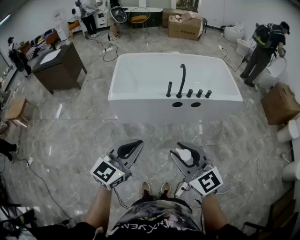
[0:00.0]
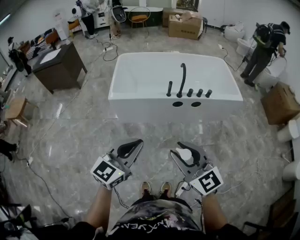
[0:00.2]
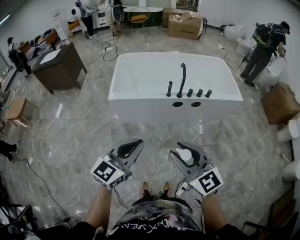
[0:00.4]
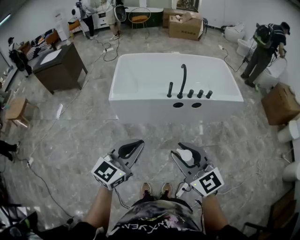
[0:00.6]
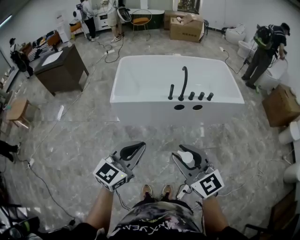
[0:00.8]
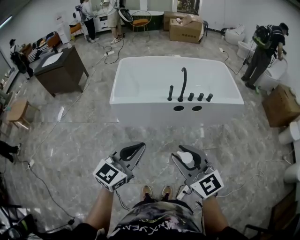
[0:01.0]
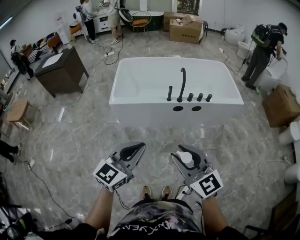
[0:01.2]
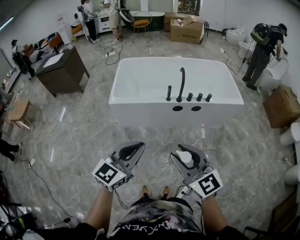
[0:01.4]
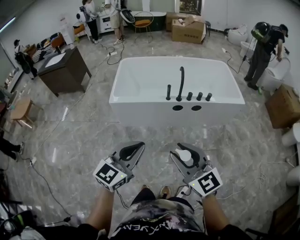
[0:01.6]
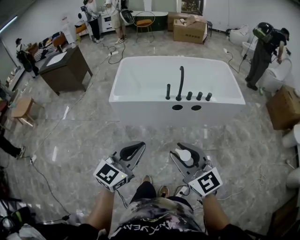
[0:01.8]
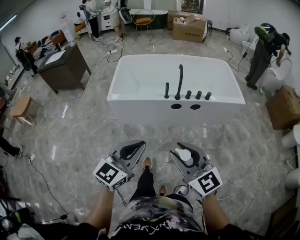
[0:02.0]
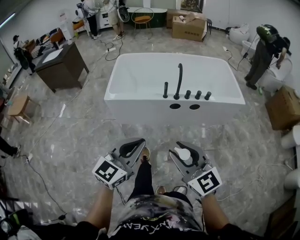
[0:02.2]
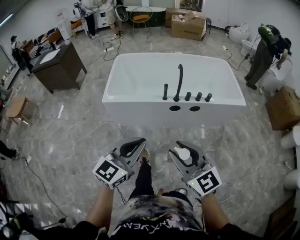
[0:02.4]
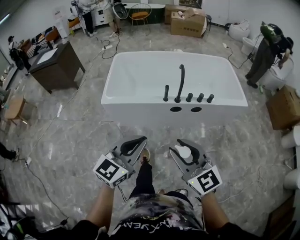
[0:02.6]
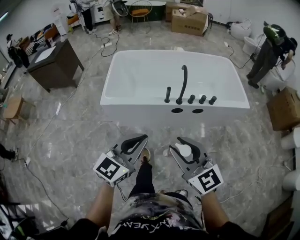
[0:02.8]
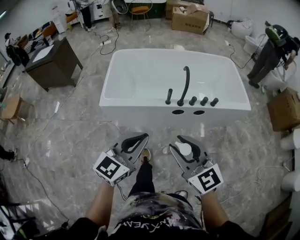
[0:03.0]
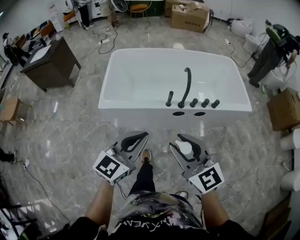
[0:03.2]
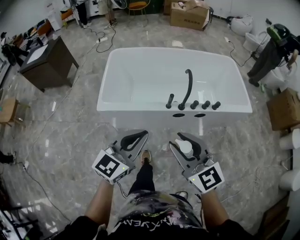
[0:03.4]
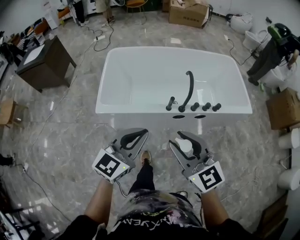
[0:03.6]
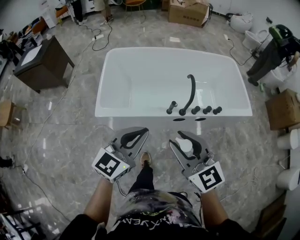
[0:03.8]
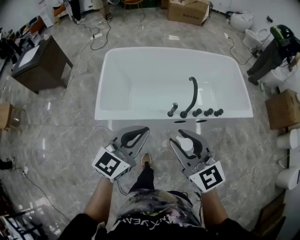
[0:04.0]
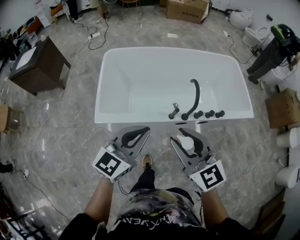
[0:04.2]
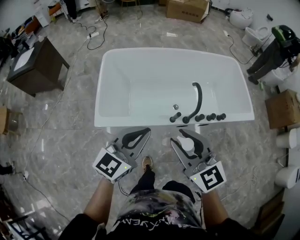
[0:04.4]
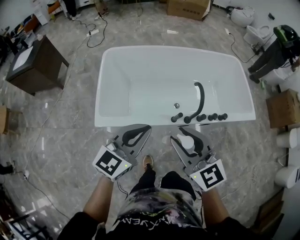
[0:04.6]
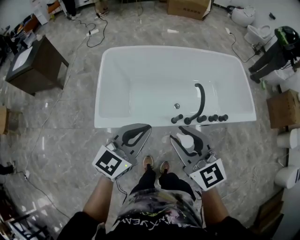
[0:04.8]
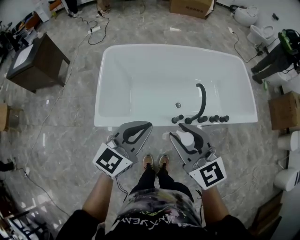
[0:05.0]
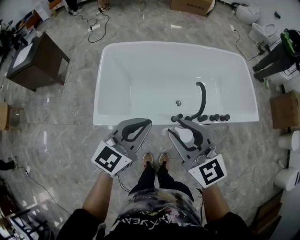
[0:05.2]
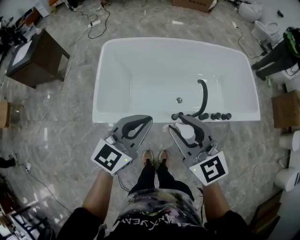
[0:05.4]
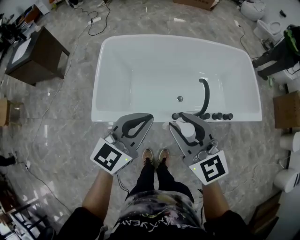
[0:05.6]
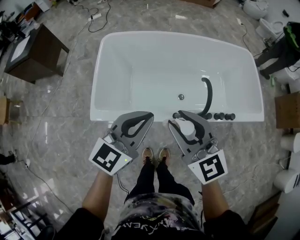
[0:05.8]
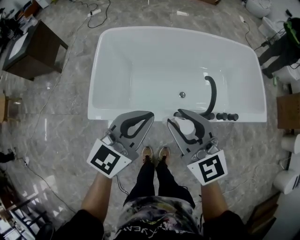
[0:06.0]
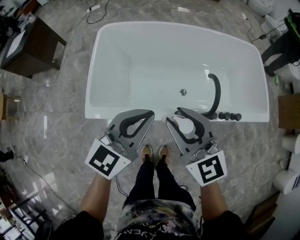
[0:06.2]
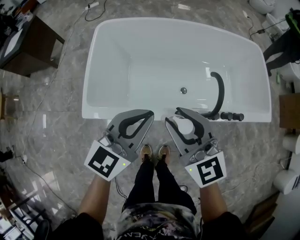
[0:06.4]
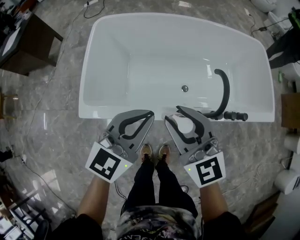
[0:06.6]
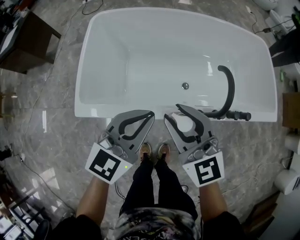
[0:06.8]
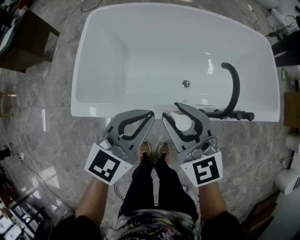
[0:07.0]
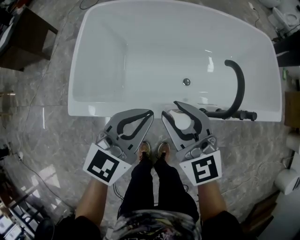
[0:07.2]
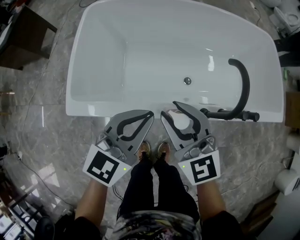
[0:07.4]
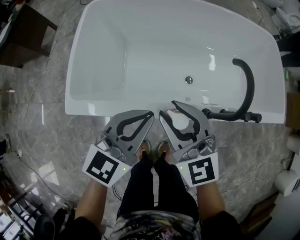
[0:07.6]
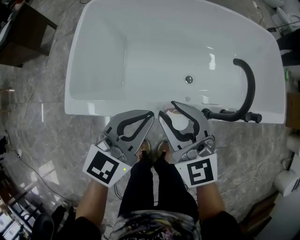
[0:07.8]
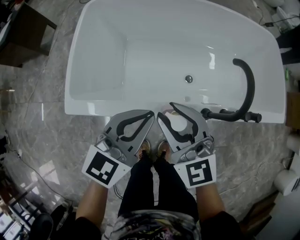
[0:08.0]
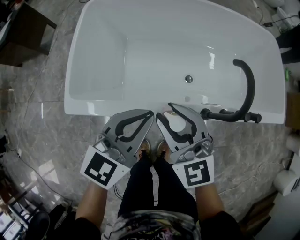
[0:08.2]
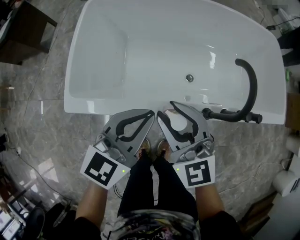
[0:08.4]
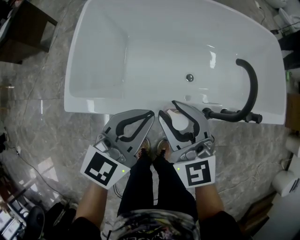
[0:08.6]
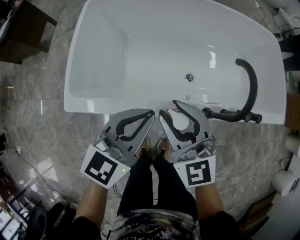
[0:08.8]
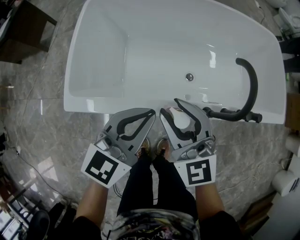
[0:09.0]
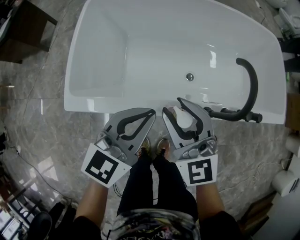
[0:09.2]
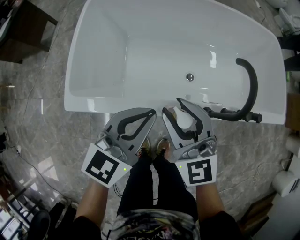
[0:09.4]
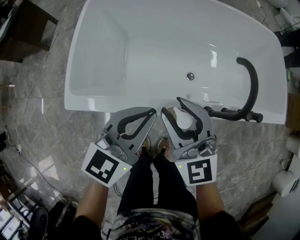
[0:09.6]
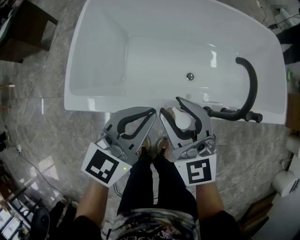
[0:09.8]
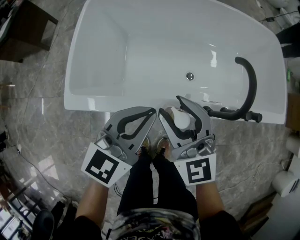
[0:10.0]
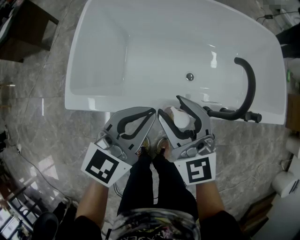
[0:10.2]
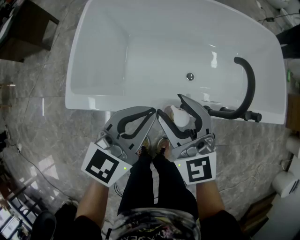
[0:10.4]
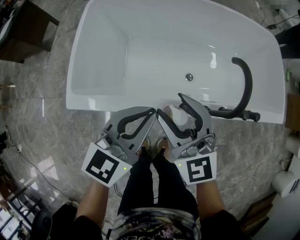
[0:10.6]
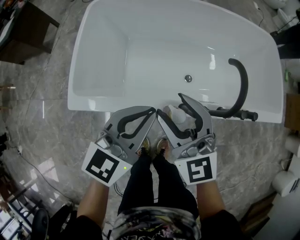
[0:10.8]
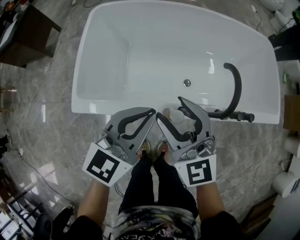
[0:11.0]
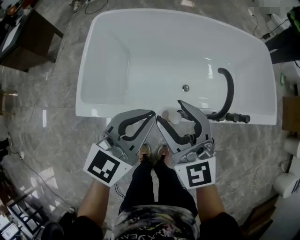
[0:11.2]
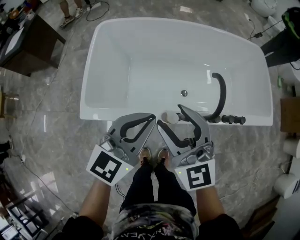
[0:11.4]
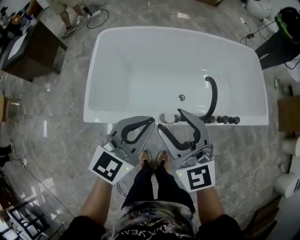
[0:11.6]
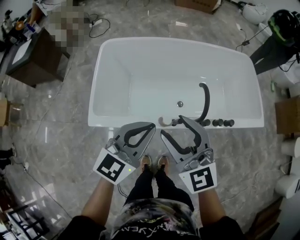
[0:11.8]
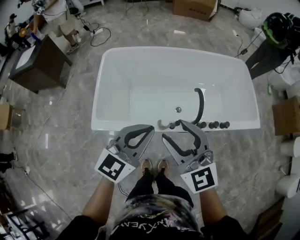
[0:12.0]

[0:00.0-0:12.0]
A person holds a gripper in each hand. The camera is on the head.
0:00.0 to 0:01.6: Both grippers move to the right, approximately 5 cm.
0:01.6 to 0:03.0: Both grippers move forward, some 20 cm.
0:03.0 to 0:04.4: Both grippers travel together forward, roughly 30 cm.
0:04.4 to 0:06.0: The grippers both shift forward and downward by approximately 15 cm.
0:06.0 to 0:07.6: The grippers both shift downward by approximately 25 cm.
0:07.6 to 0:09.0: Both grippers stay about where they are.
0:09.0 to 0:10.4: The two grippers keep their place.
0:10.4 to 0:12.0: The grippers both shift upward by approximately 25 cm.

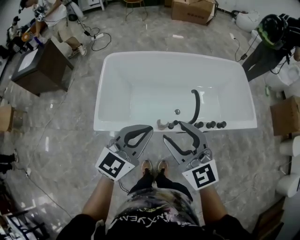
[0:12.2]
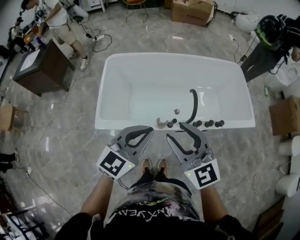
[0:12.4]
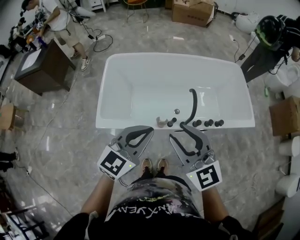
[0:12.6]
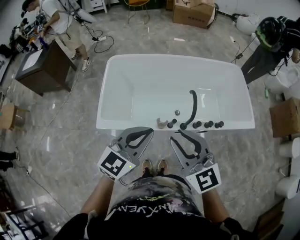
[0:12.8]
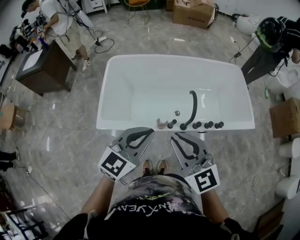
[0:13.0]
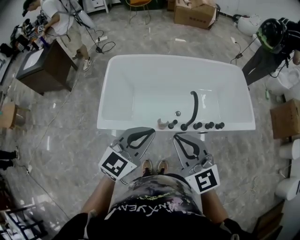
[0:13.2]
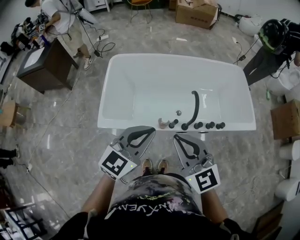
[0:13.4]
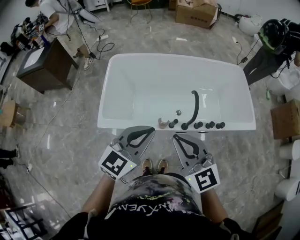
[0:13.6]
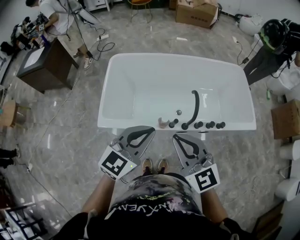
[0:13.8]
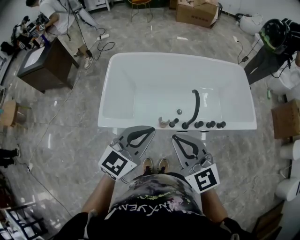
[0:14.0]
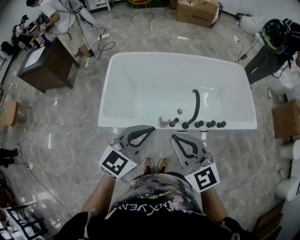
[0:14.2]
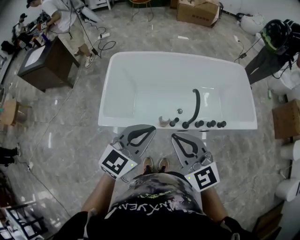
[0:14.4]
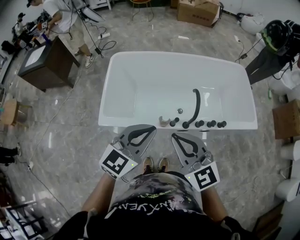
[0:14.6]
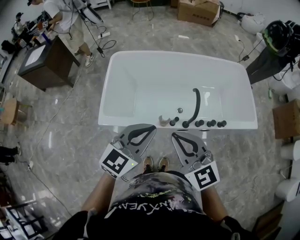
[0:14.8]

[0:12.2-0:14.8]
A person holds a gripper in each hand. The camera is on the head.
0:12.2 to 0:13.4: The right gripper closes.
0:13.4 to 0:14.8: Both grippers stay put.

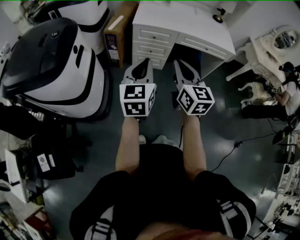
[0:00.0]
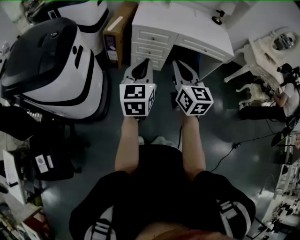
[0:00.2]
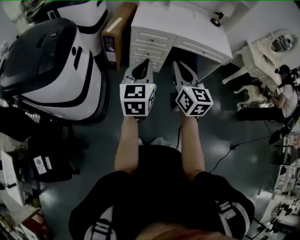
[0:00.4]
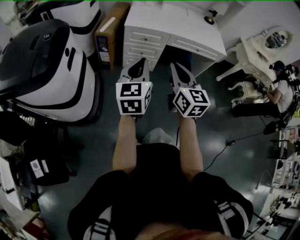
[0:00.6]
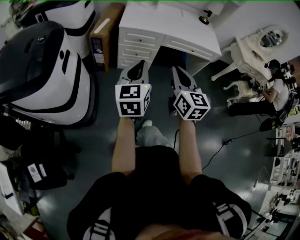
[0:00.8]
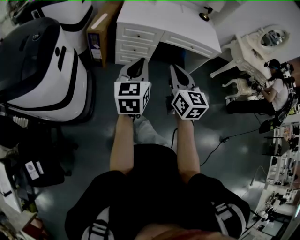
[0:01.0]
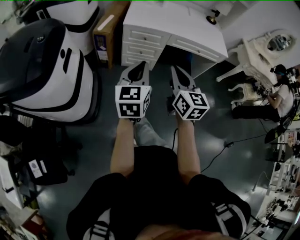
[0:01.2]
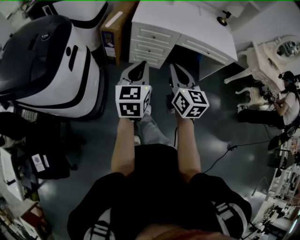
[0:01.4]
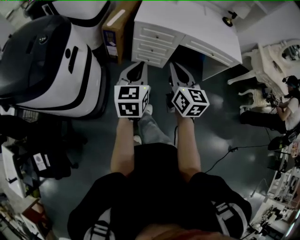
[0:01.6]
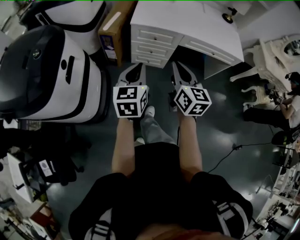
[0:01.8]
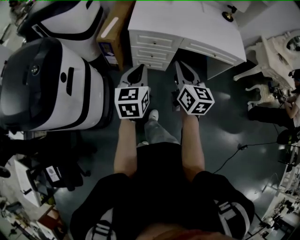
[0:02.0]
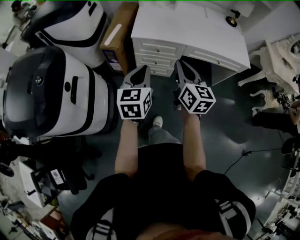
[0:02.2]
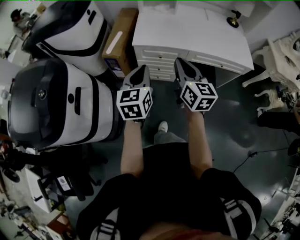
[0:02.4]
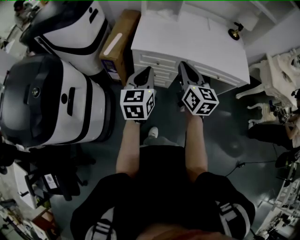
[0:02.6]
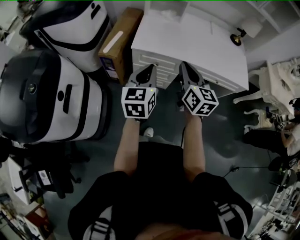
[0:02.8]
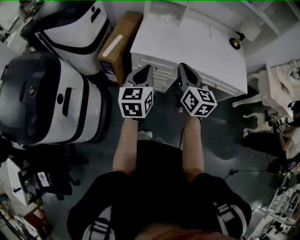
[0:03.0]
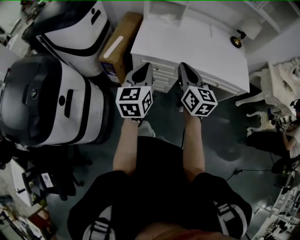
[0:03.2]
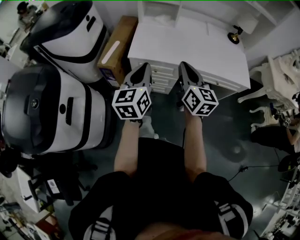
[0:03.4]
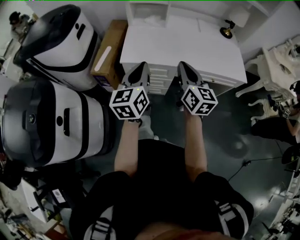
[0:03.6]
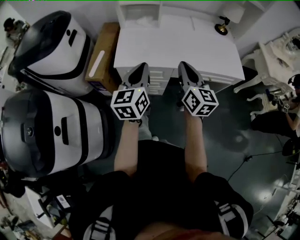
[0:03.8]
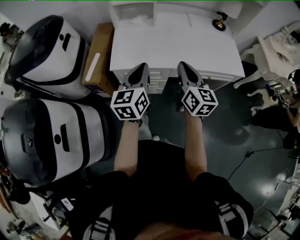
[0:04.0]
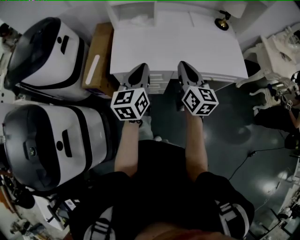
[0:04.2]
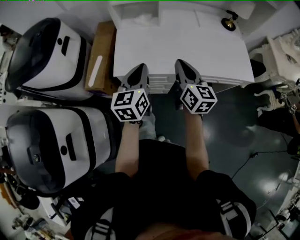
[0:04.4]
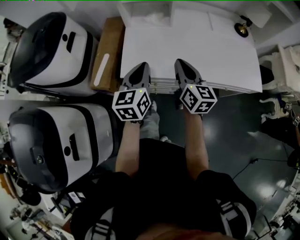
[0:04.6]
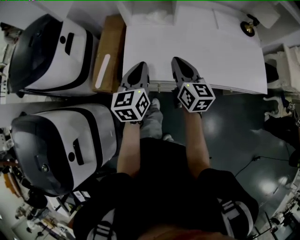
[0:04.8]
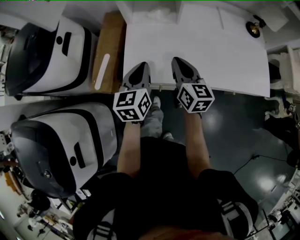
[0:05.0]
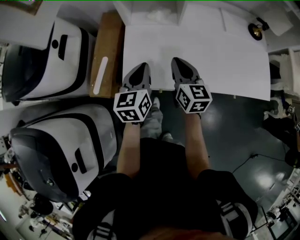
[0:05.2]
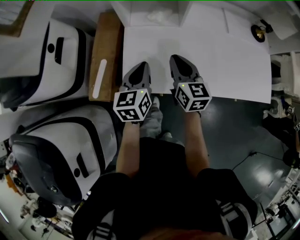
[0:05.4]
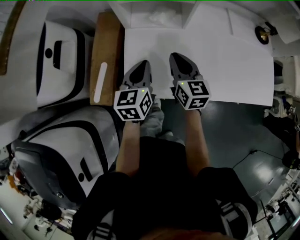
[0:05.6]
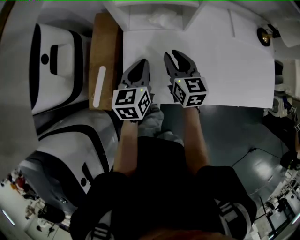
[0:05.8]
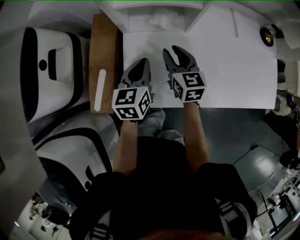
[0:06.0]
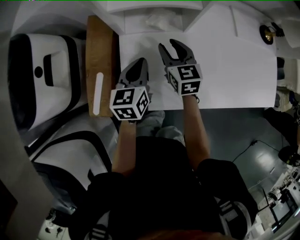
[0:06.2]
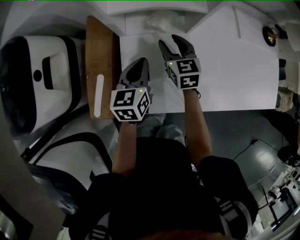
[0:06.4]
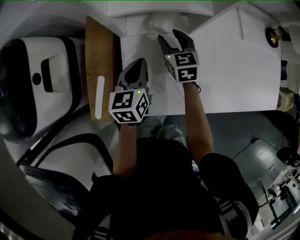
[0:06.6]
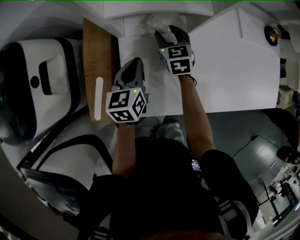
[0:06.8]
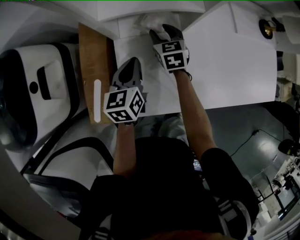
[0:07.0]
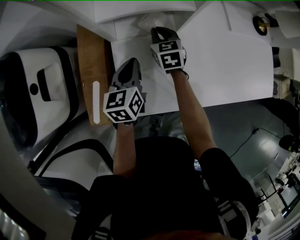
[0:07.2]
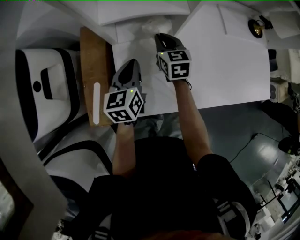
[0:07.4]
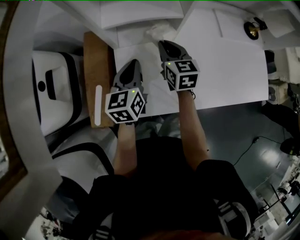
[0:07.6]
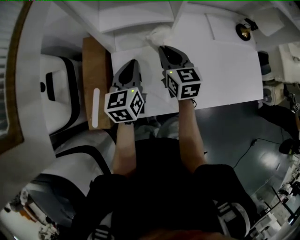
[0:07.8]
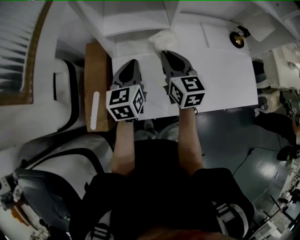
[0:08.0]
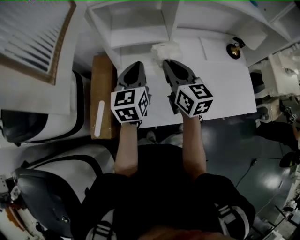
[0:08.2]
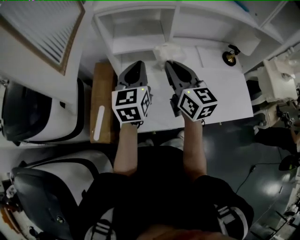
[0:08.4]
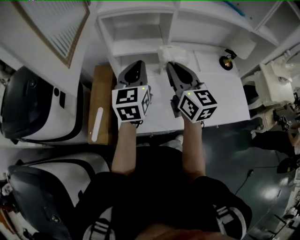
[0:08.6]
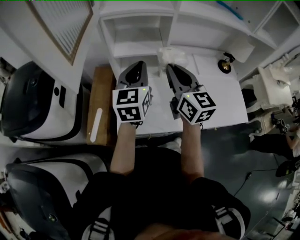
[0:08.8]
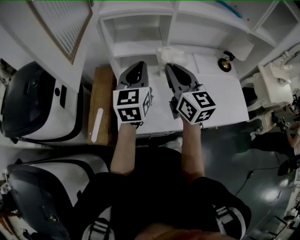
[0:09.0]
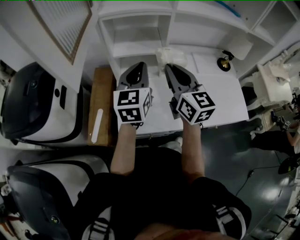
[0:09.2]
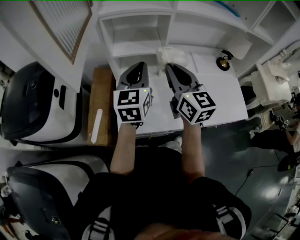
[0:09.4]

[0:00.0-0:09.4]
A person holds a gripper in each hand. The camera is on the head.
0:00.0 to 0:01.6: Both grippers travel together forward and downward, about 10 cm.
0:01.6 to 0:03.2: The two grippers go approximately 25 cm forward.
0:03.2 to 0:04.8: Both grippers travel together forward, about 25 cm.
0:04.8 to 0:06.2: The grippers both shift forward and downward by approximately 30 cm. The right gripper rotates approximately 20 degrees, and opens its fingers.
0:06.2 to 0:07.8: Both grippers move upward, about 10 cm. The right gripper closes up.
0:07.8 to 0:09.4: The left gripper moves upward, roughly 20 cm, while the right gripper goes roughly 25 cm upward and backward, and changes its angle by about 20 degrees.
